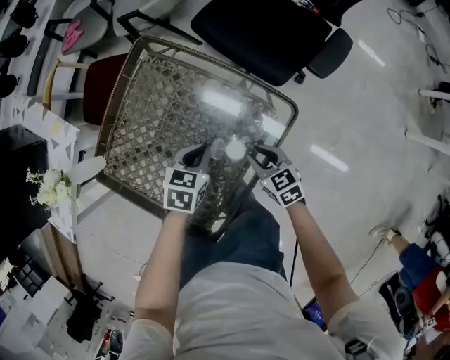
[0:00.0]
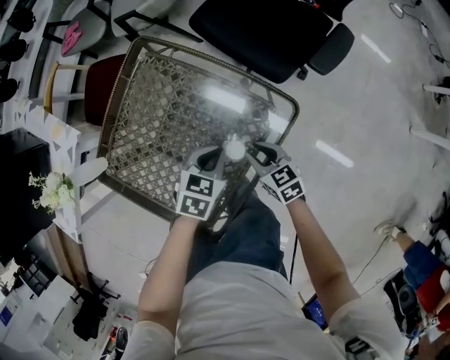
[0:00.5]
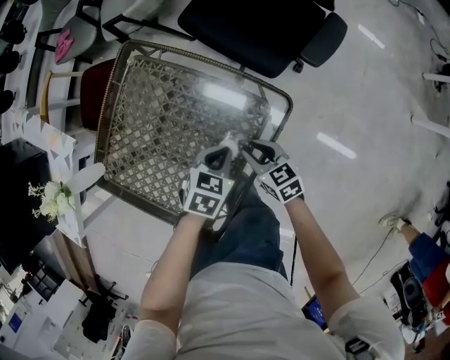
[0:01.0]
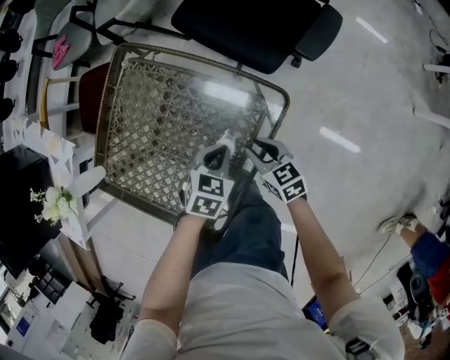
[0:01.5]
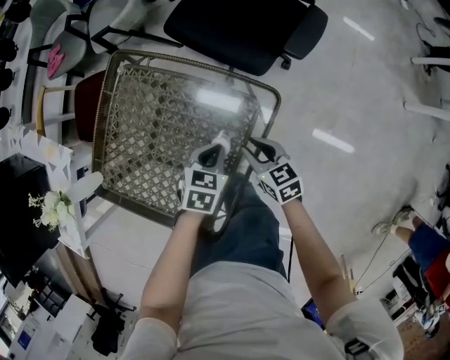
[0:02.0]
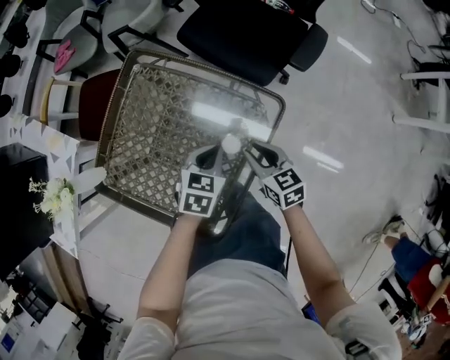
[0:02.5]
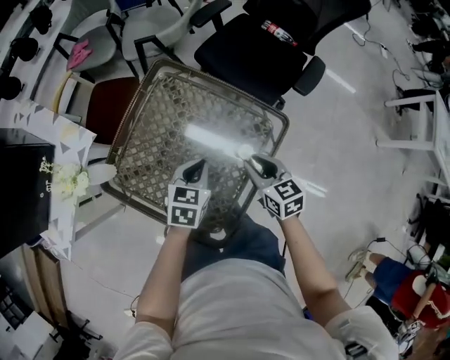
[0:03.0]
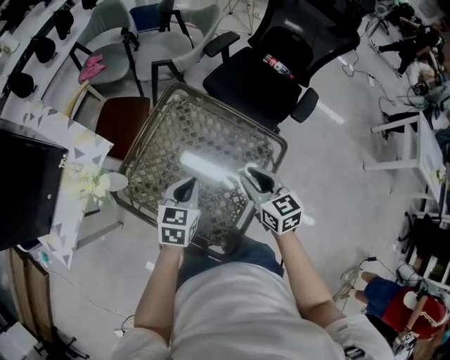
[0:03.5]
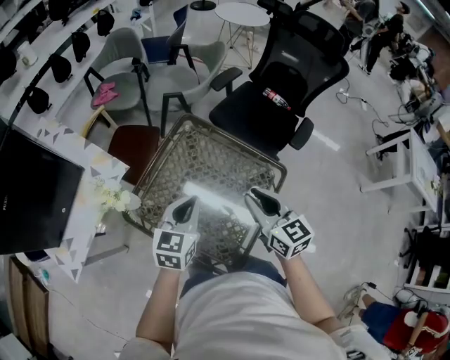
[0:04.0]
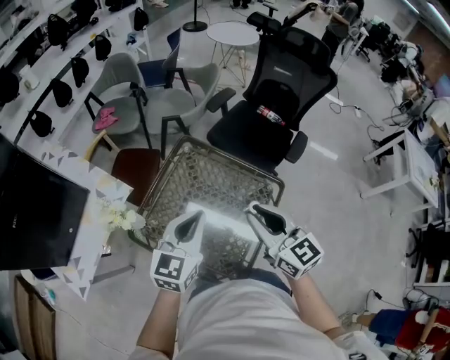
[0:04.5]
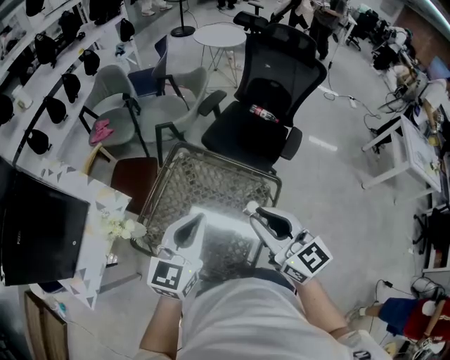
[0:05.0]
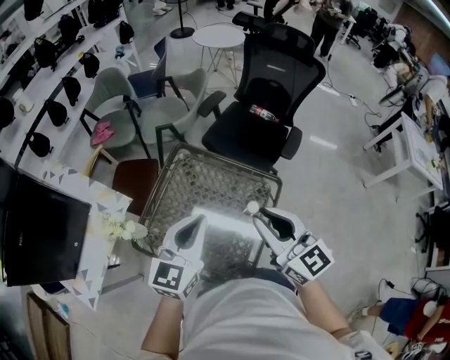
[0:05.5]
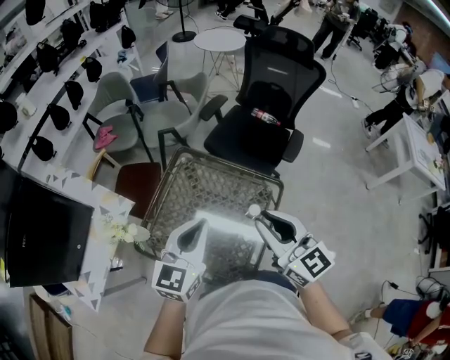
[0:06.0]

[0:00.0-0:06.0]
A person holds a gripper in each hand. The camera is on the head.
0:00.0 to 0:02.0: The left gripper is displaced to the right by about 10 cm.
0:02.0 to 0:04.0: Both grippers move upward and to the left, approximately 40 cm. The left gripper tilts its fingers about 30 degrees upward, while the right gripper turns by roughly 20 degrees.
0:04.0 to 0:06.0: Both grippers travel together upward, roughly 10 cm.

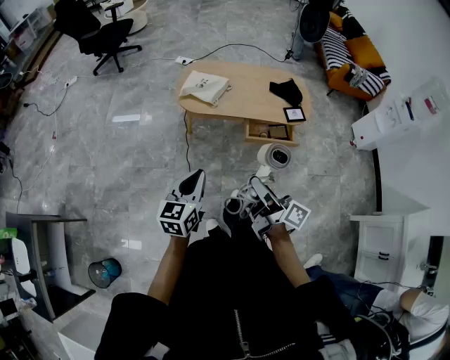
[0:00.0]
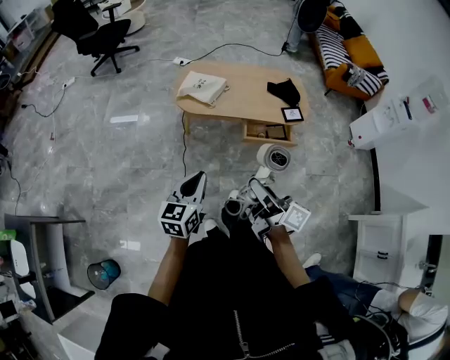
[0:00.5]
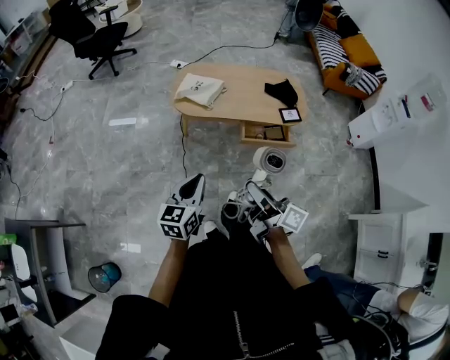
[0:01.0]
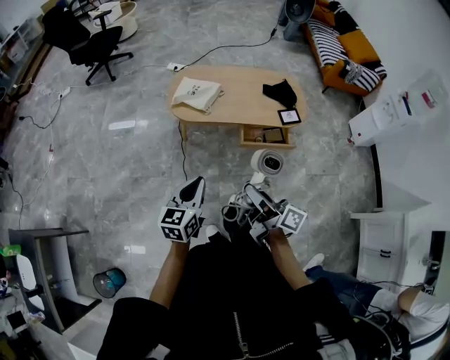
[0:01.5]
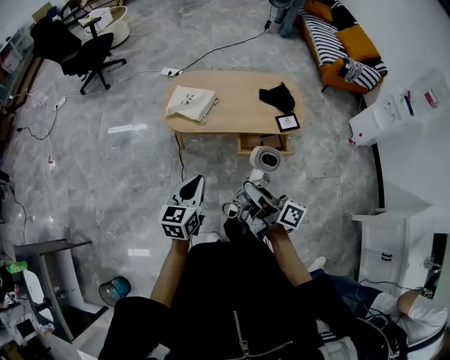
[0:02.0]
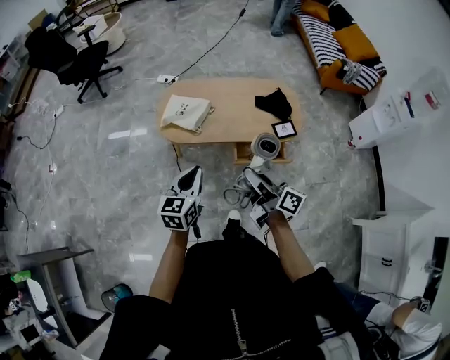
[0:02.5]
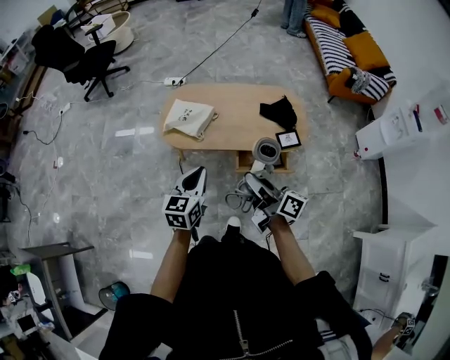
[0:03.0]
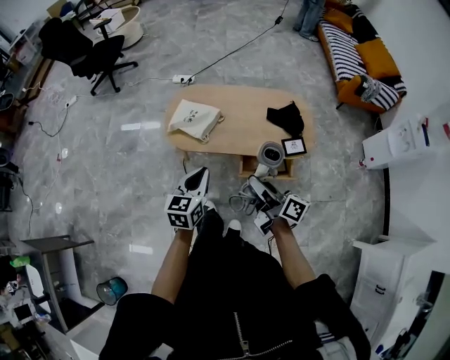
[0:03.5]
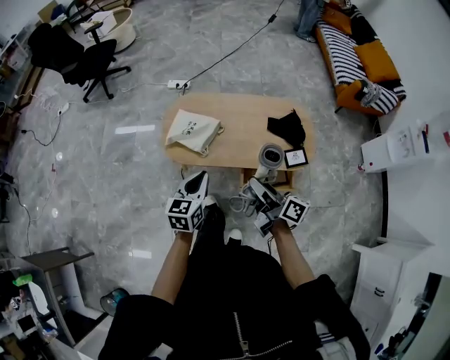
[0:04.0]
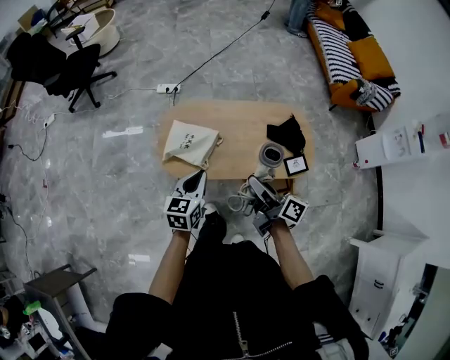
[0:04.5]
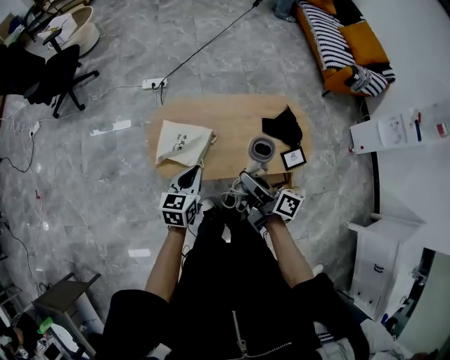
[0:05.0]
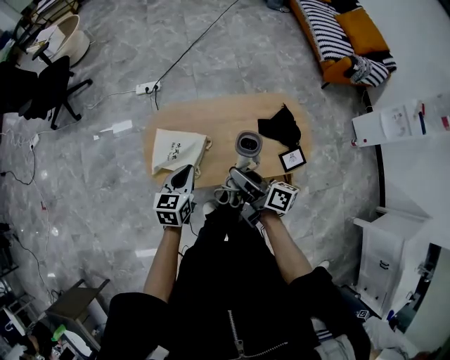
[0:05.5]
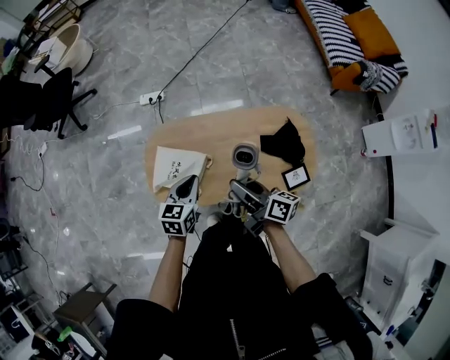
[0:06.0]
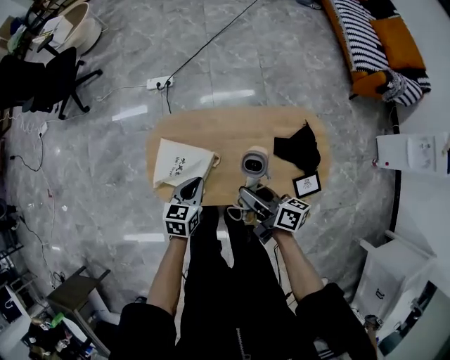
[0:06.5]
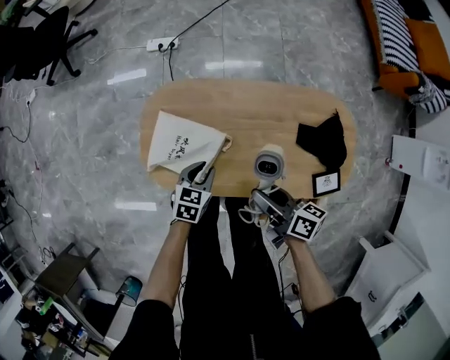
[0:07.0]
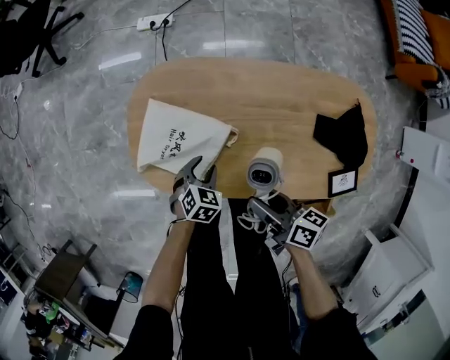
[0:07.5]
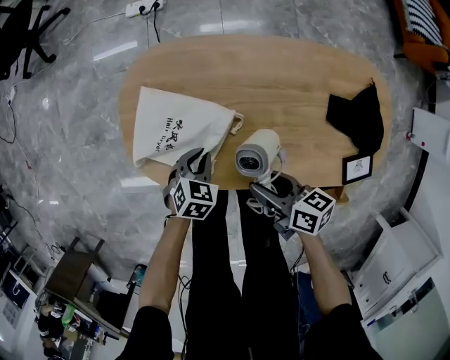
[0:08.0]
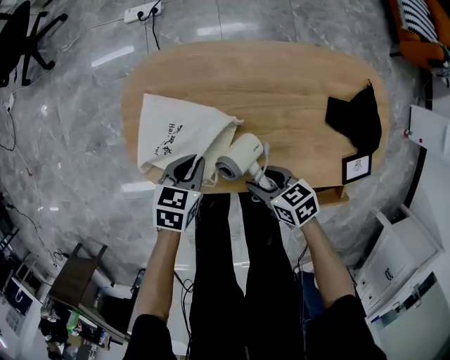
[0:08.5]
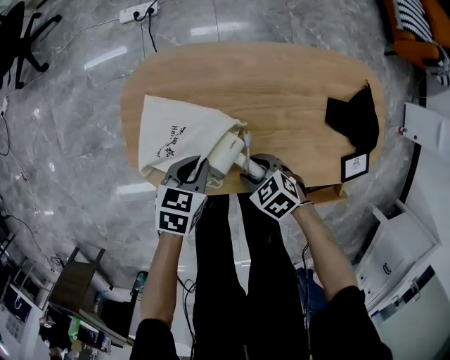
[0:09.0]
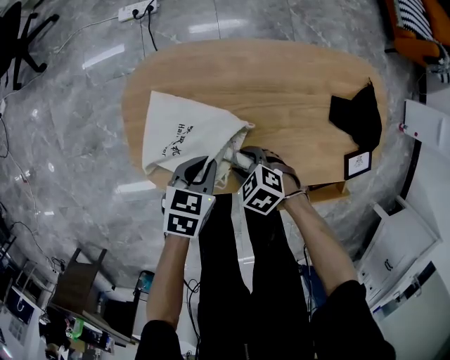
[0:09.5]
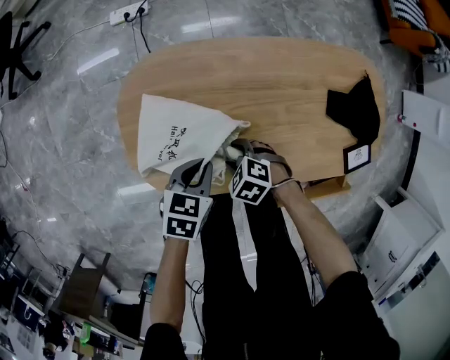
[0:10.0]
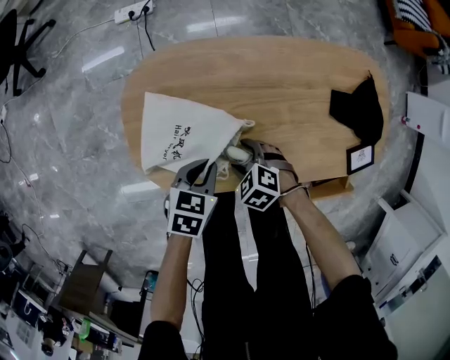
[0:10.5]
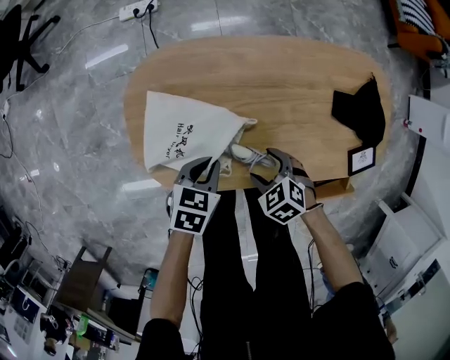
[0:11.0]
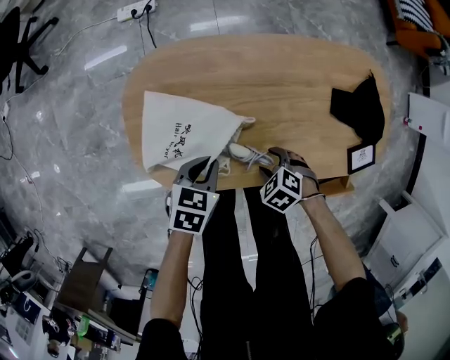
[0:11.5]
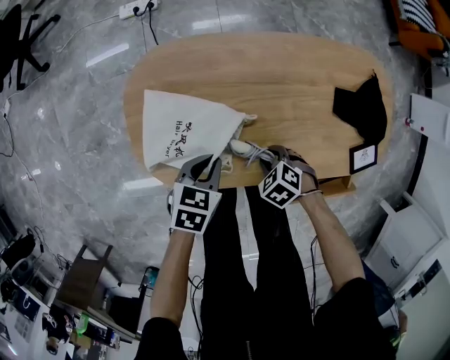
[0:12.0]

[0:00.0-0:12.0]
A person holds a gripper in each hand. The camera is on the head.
0:00.0 to 0:02.0: The right gripper shifts roughly 10 cm forward, while the left gripper shifts about 15 cm forward and to the right.
0:02.0 to 0:04.0: The two grippers go about 25 cm forward.
0:04.0 to 0:06.0: The two grippers go approximately 25 cm forward.
0:06.0 to 0:08.0: Both grippers travel together downward, approximately 35 cm. The left gripper turns by roughly 30 degrees, and opens and closes again. The right gripper changes its angle by some 30 degrees.
0:08.0 to 0:10.0: The right gripper shifts some 10 cm downward, and angles its fingers downward, by about 40 degrees. The left gripper is displaced upward by about 5 cm, and rotates approximately 20 degrees.
0:10.0 to 0:12.0: The right gripper ends up some 10 cm from where it was.

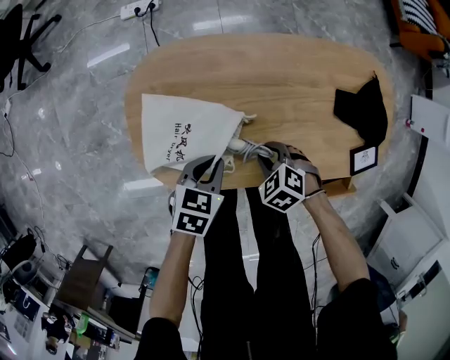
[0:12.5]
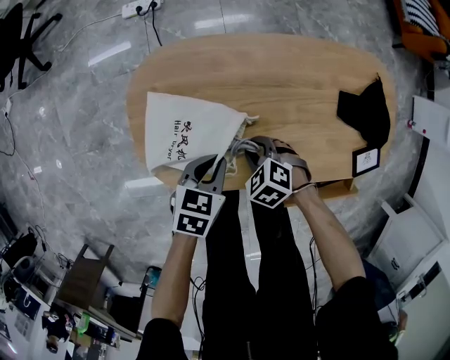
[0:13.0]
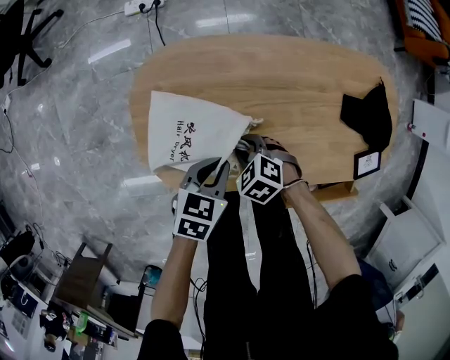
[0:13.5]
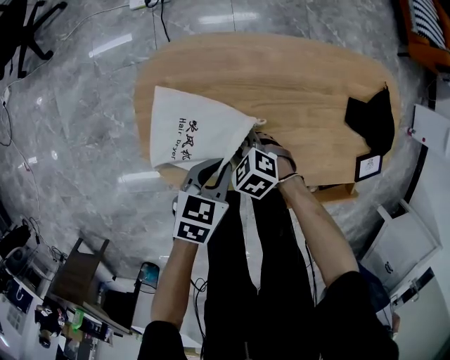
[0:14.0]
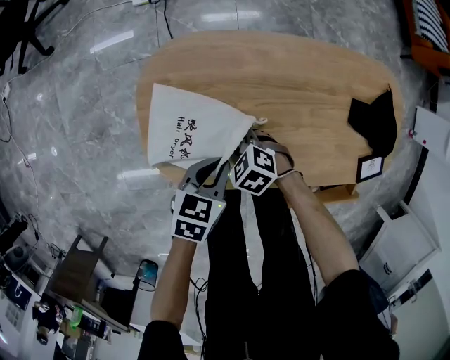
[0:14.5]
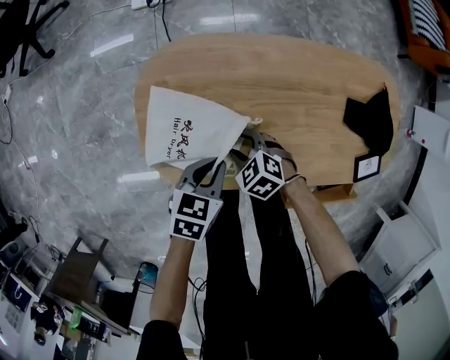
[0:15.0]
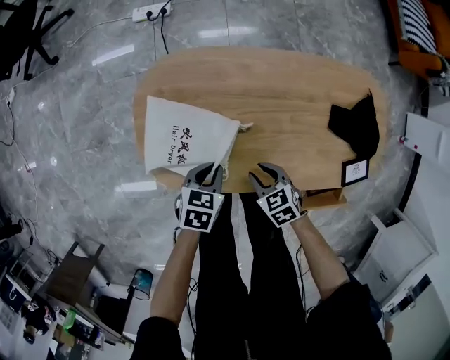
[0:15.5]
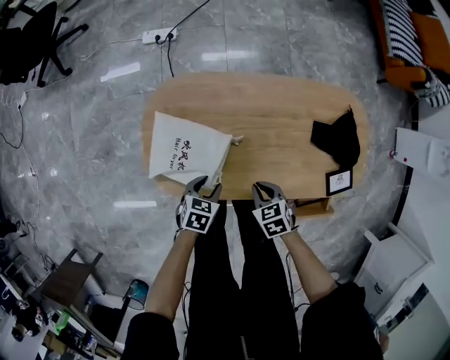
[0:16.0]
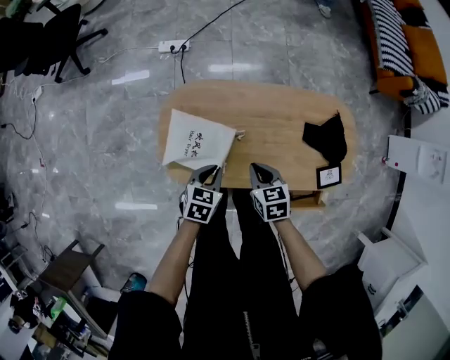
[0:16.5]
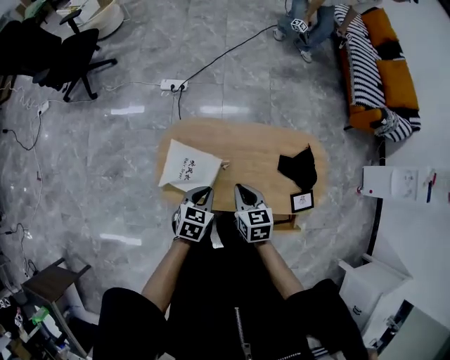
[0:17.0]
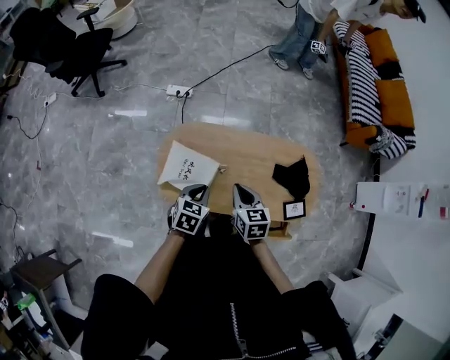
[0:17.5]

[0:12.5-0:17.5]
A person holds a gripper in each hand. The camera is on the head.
0:12.5 to 0:15.0: The right gripper shifts by approximately 10 cm.
0:15.0 to 0:17.5: Both grippers move upward, some 30 cm. The right gripper changes its angle by roughly 50 degrees, and closes up. The left gripper opens and closes again.

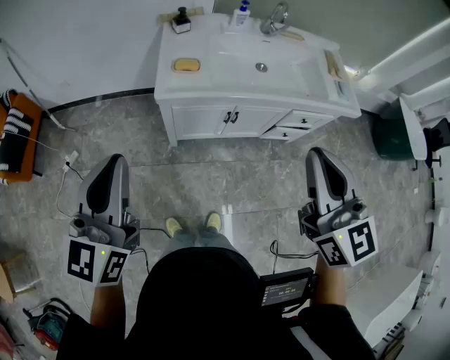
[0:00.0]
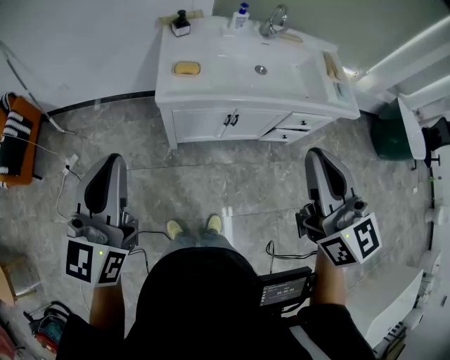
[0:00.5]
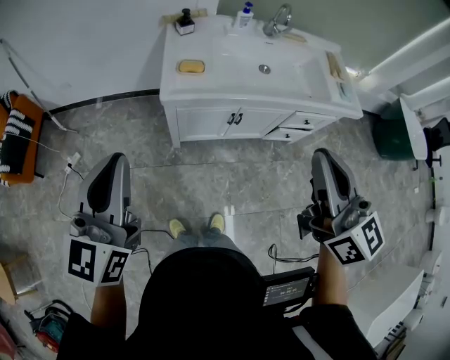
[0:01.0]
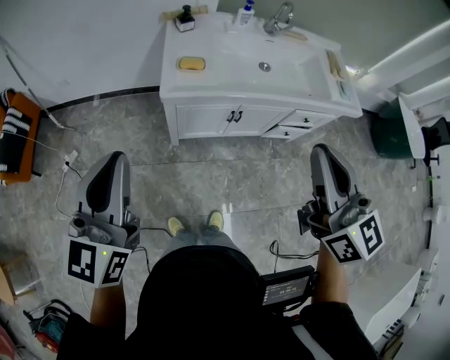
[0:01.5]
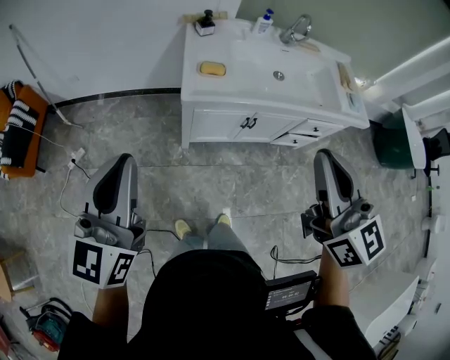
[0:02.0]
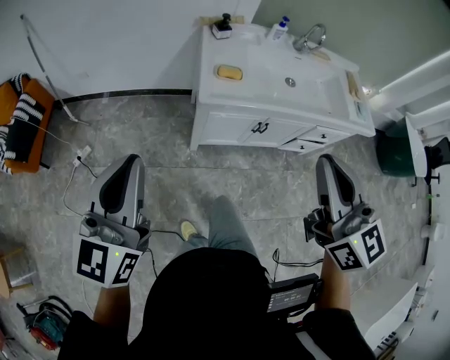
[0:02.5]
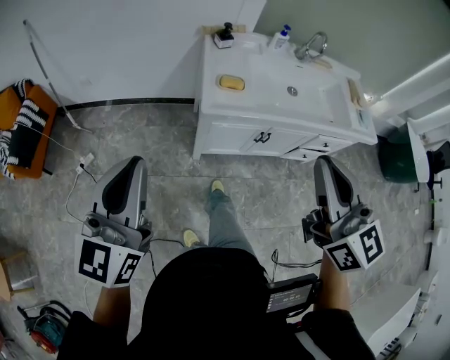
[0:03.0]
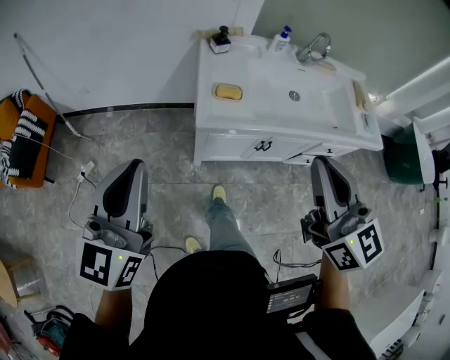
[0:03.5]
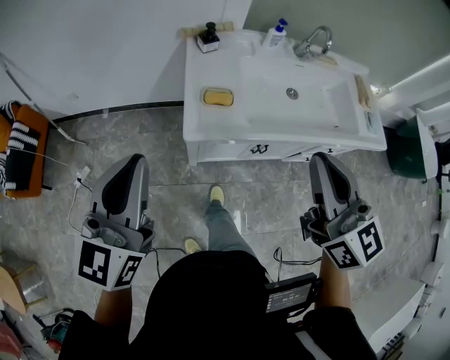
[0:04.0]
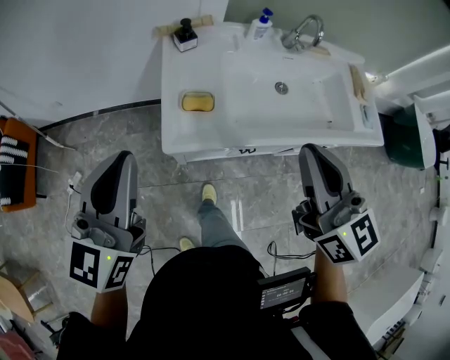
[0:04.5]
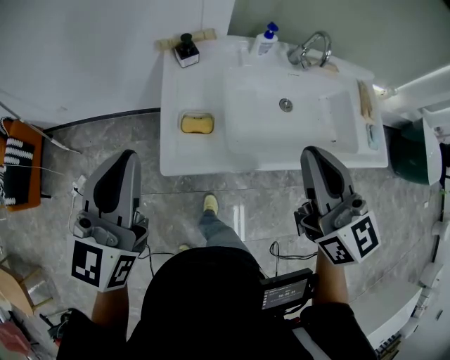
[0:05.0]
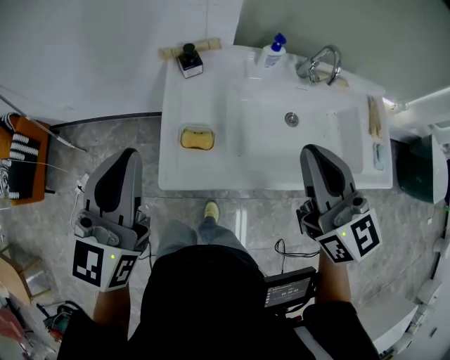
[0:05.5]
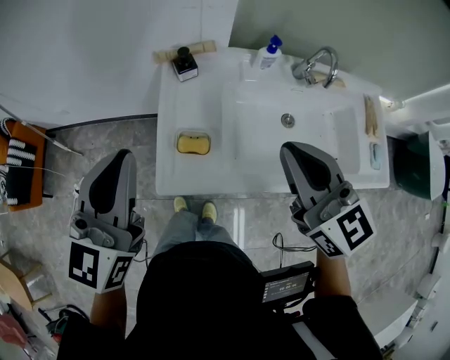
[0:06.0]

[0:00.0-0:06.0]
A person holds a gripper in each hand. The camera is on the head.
0:00.0 to 0:02.0: The grippers both shift to the left by approximately 10 cm.
0:02.0 to 0:04.0: Both grippers move forward, about 15 cm.
0:04.0 to 0:06.0: The left gripper shifts some 20 cm forward and to the right. Meanwhile the right gripper goes about 20 cm forward.
